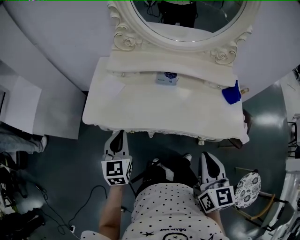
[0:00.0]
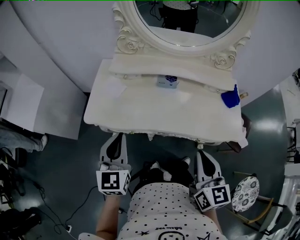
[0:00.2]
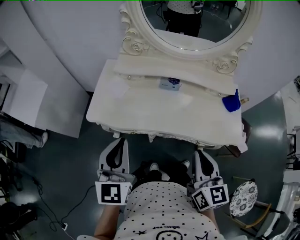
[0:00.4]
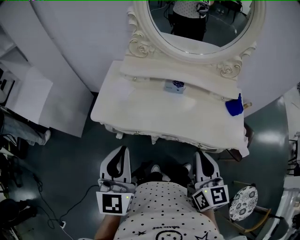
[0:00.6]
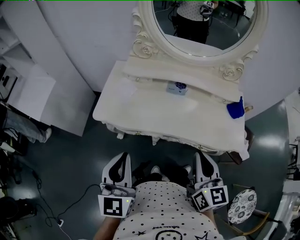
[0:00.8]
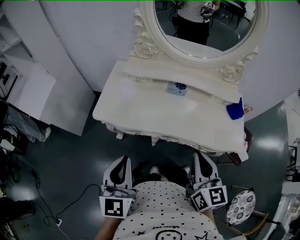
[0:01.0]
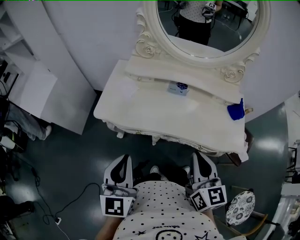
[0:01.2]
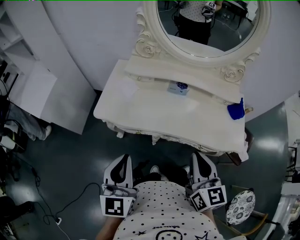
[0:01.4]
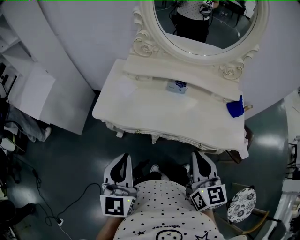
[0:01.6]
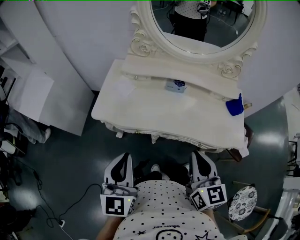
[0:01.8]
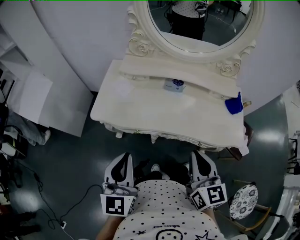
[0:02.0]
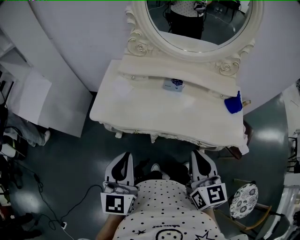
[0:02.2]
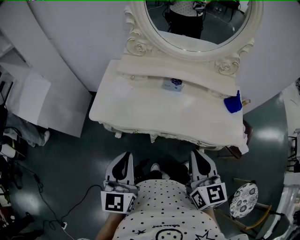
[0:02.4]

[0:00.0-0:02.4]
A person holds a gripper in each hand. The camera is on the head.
0:00.0 to 0:01.2: The right gripper shifts by roughly 5 cm. Meanwhile the left gripper heads upward and backward, covering about 15 cm.
0:01.2 to 0:02.4: The grippers stay close to where they were, moving slightly.

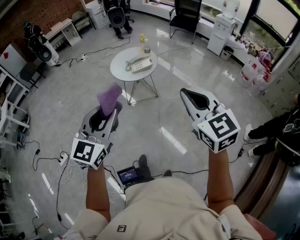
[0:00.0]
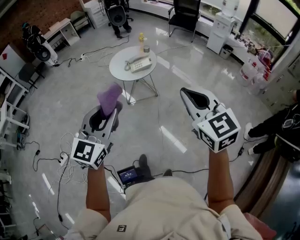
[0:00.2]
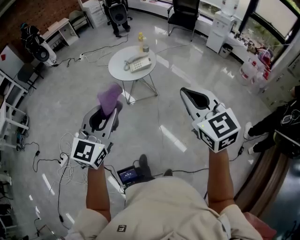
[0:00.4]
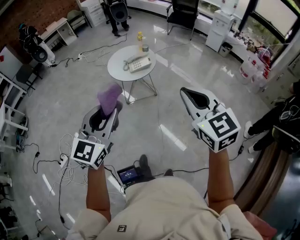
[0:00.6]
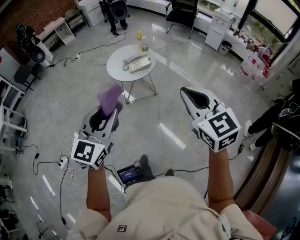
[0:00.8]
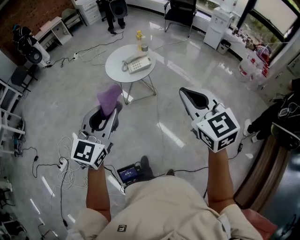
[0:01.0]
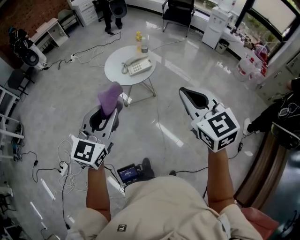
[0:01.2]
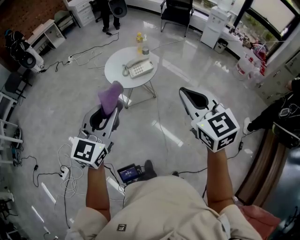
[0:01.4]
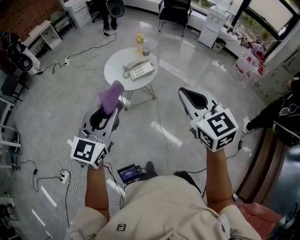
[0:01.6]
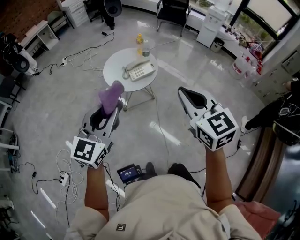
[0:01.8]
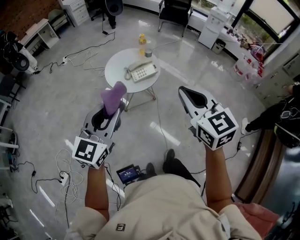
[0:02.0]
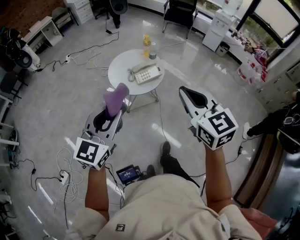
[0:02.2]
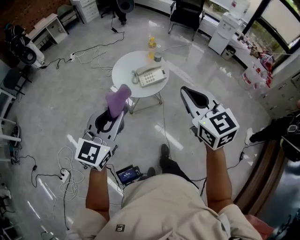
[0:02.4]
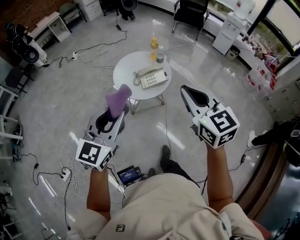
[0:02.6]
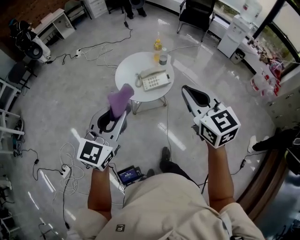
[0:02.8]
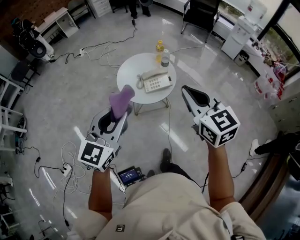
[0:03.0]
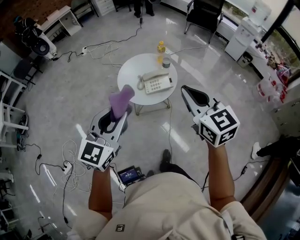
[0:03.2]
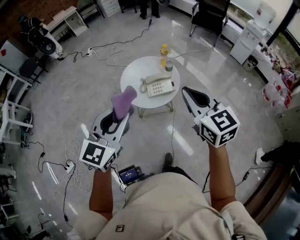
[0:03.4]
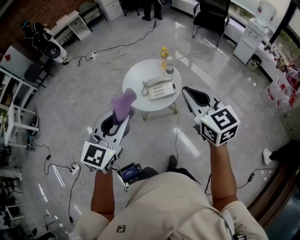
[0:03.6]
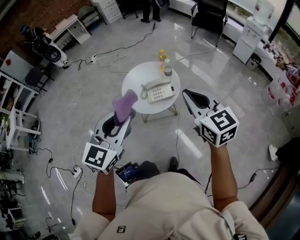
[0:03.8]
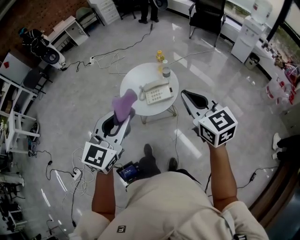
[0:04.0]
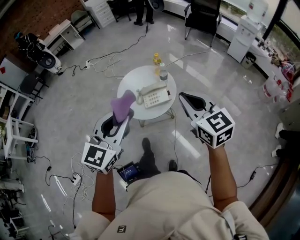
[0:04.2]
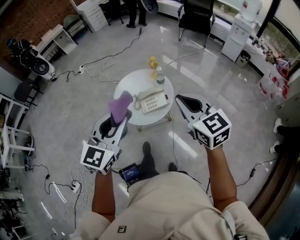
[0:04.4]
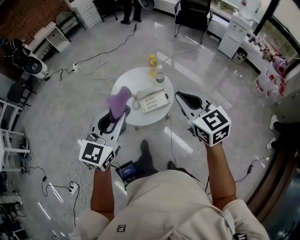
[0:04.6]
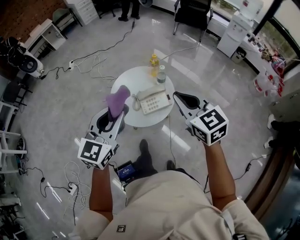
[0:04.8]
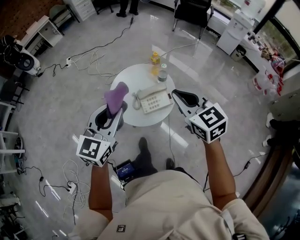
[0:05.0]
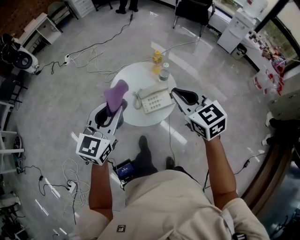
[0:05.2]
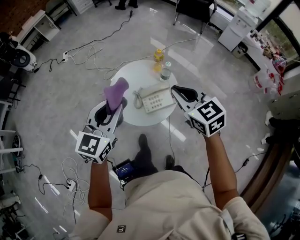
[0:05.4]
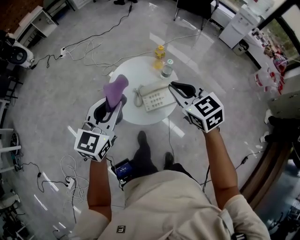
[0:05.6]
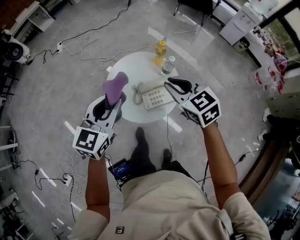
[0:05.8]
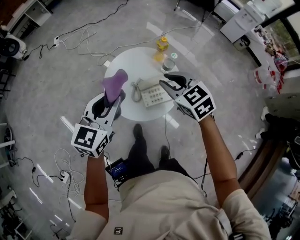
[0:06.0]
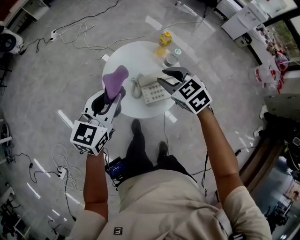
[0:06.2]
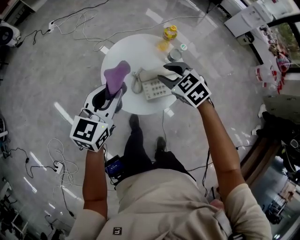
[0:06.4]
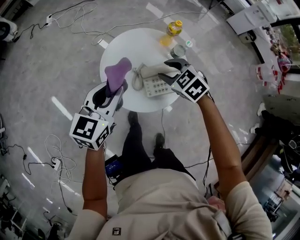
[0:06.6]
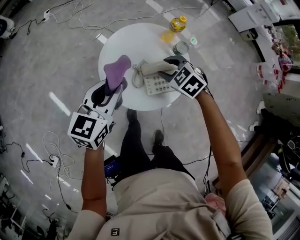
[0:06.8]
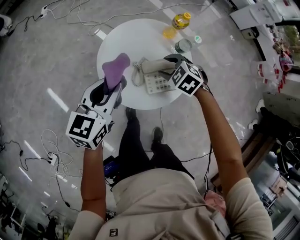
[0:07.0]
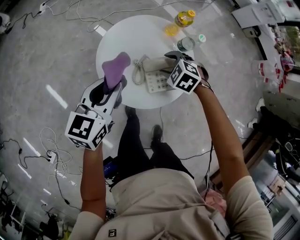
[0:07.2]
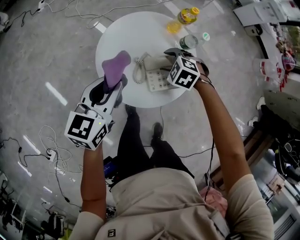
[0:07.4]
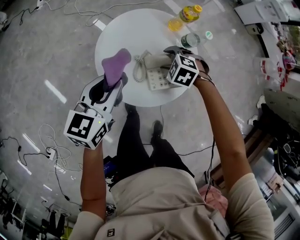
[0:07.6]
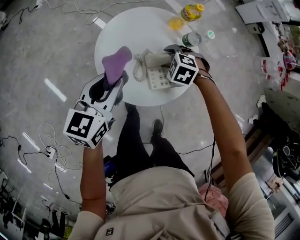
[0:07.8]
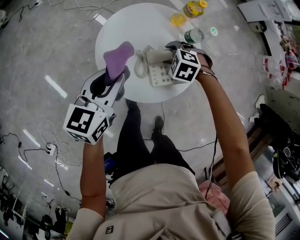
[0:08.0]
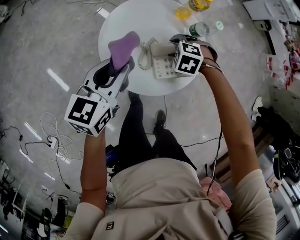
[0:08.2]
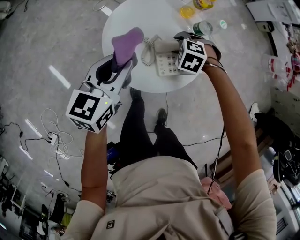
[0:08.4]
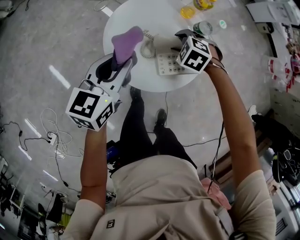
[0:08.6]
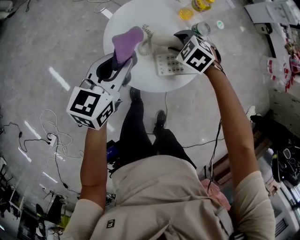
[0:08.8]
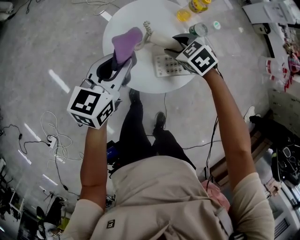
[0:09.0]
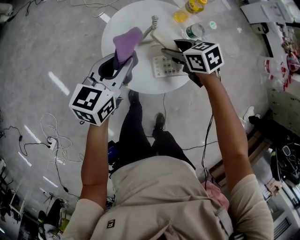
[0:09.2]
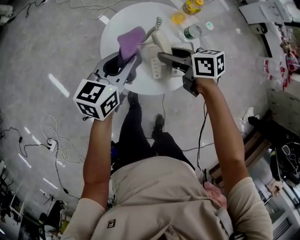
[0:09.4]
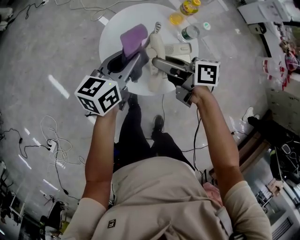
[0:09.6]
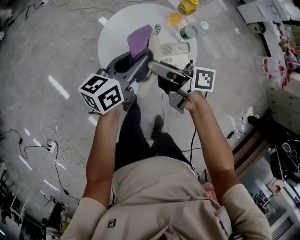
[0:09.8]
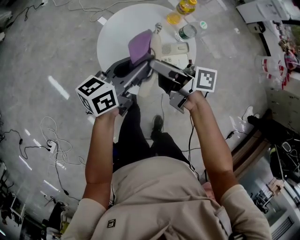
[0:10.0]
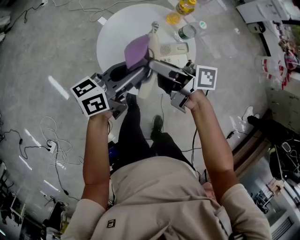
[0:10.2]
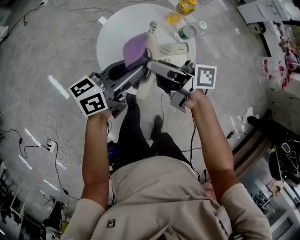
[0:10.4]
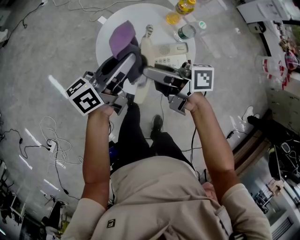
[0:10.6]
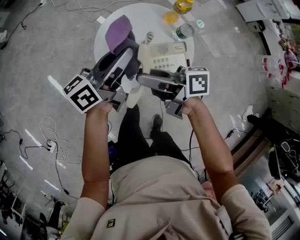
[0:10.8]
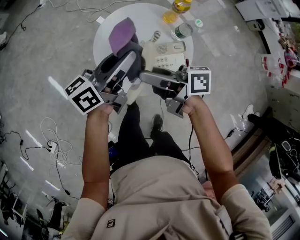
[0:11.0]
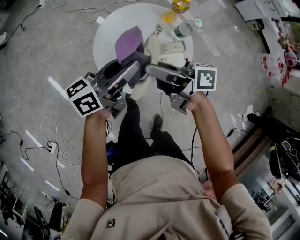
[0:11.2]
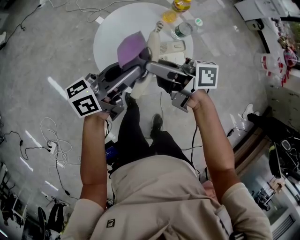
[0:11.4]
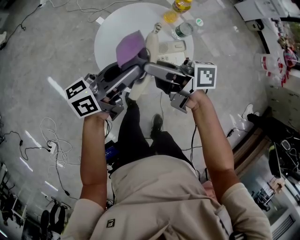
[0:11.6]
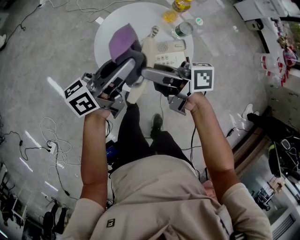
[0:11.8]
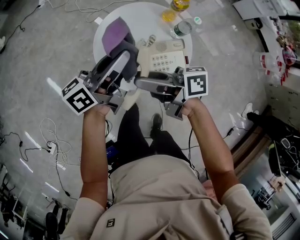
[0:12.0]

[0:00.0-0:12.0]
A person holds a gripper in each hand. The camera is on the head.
0:00.0 to 0:01.6: The two grippers go some 25 cm forward and to the left.
0:01.6 to 0:03.0: Both grippers travel together forward, about 20 cm.
0:03.0 to 0:04.4: Both grippers travel together forward and to the right, about 10 cm.
0:04.4 to 0:06.0: The two grippers go some 30 cm forward, downward and to the left. The right gripper changes its angle by about 20 degrees.
0:06.0 to 0:07.6: The right gripper goes approximately 30 cm downward, points its fingers some 40 degrees further downward, and opens up, while the left gripper travels downward by some 15 cm.
0:07.6 to 0:09.0: The right gripper travels upward by approximately 5 cm, and changes its angle by some 20 degrees.
0:09.0 to 0:10.4: The right gripper is displaced upward and to the left by some 15 cm, and angles its fingers upward, by about 60 degrees, while the left gripper moves to the right, some 5 cm, and rotates approximately 40 degrees.
0:10.4 to 0:12.0: The left gripper swings forward and backward, some 5 cm each way, with 2 reversals.

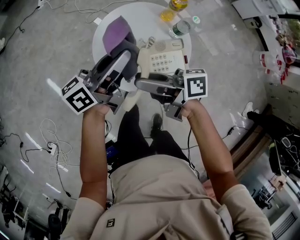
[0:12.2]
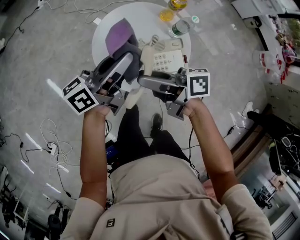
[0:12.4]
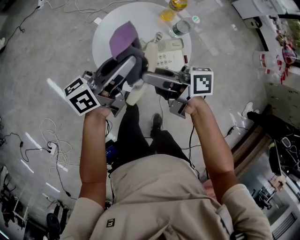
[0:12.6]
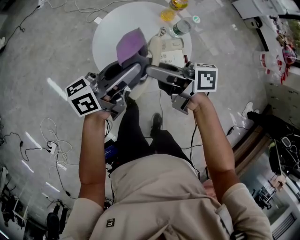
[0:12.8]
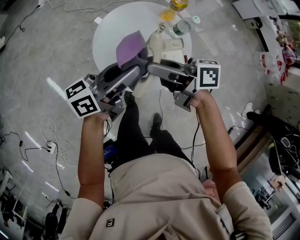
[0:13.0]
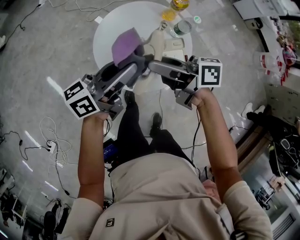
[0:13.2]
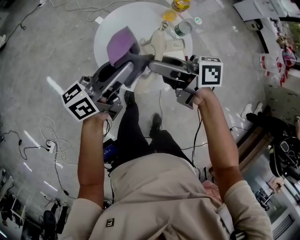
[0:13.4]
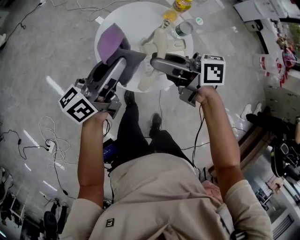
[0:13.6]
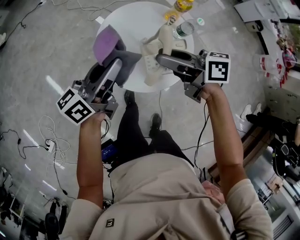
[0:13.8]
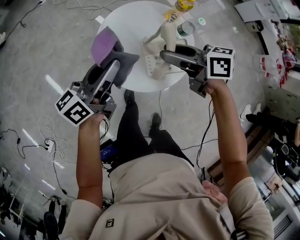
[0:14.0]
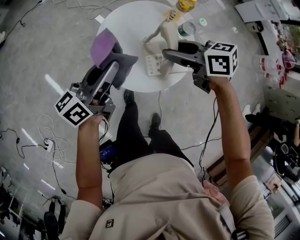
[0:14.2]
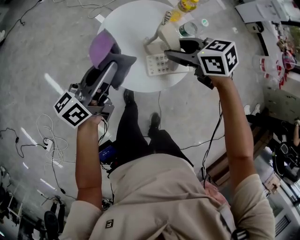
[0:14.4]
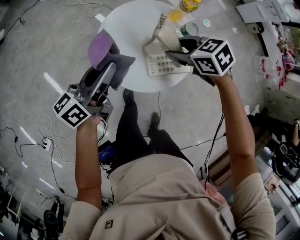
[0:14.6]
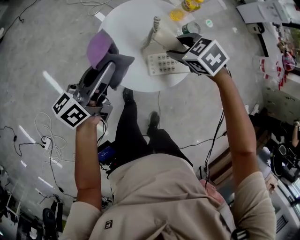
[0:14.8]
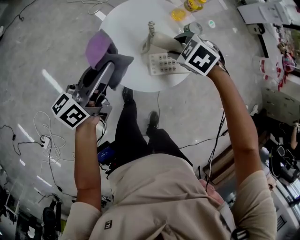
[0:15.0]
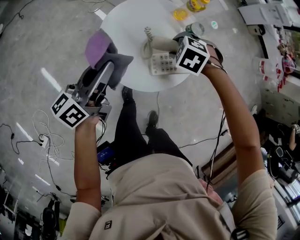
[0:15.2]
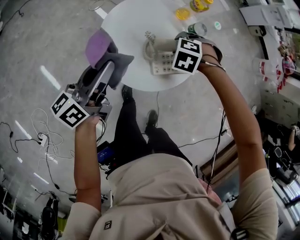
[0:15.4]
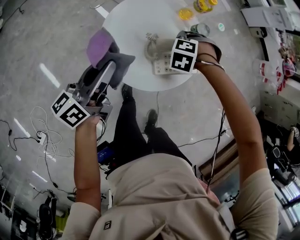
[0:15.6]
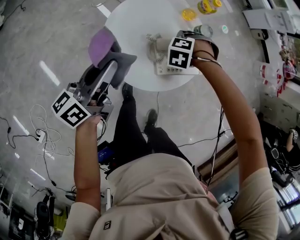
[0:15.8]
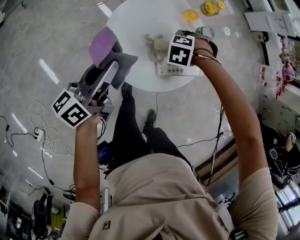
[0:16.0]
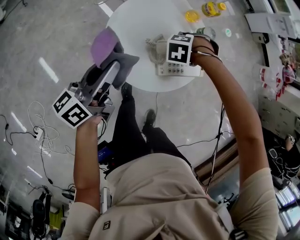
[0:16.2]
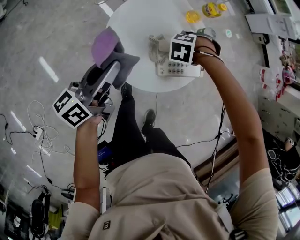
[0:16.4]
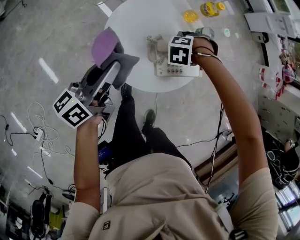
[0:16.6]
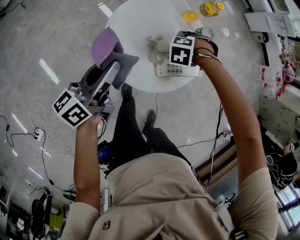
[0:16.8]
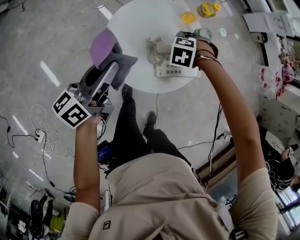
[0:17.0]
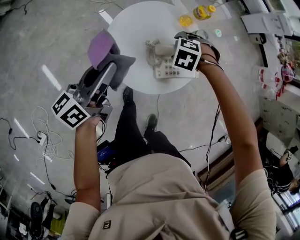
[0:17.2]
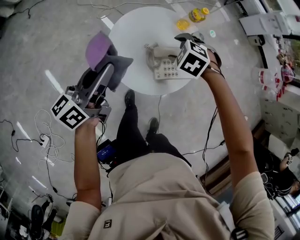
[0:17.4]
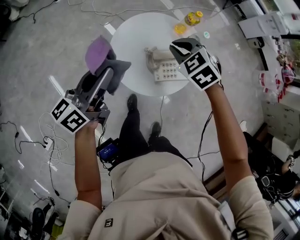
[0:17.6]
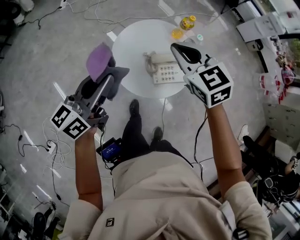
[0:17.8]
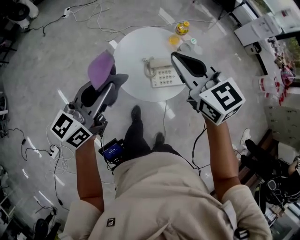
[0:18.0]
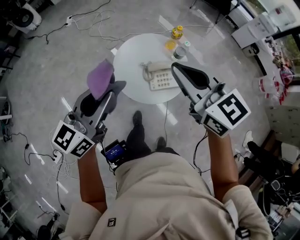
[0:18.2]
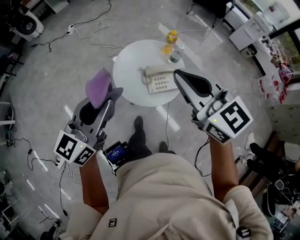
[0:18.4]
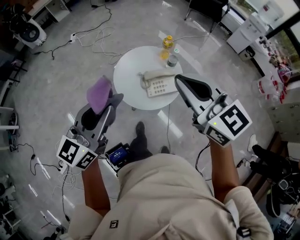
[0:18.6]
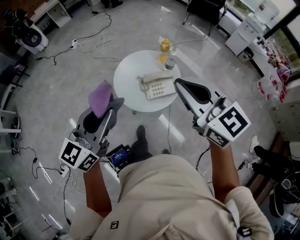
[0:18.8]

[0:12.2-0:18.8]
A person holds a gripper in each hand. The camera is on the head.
0:12.2 to 0:13.8: The left gripper changes place by some 5 cm, while the right gripper heads to the right, covering about 5 cm, and turns by roughly 20 degrees.
0:13.8 to 0:15.4: The right gripper is displaced downward by some 20 cm, and angles its fingers downward, by some 70 degrees, while the left gripper moves downward, some 5 cm.
0:15.4 to 0:17.2: The right gripper opens.
0:17.2 to 0:18.8: The left gripper heads upward, covering approximately 25 cm, and swivels some 40 degrees. Meanwhile the right gripper goes approximately 50 cm upward, tips its fingers upward by some 80 degrees, and closes.

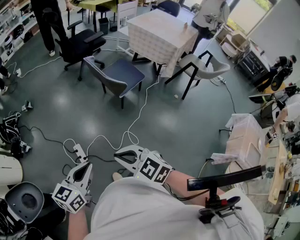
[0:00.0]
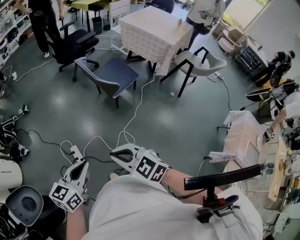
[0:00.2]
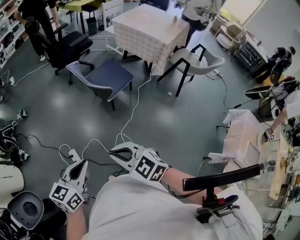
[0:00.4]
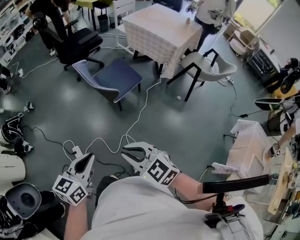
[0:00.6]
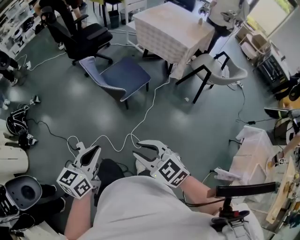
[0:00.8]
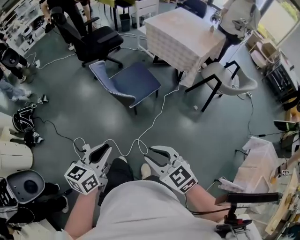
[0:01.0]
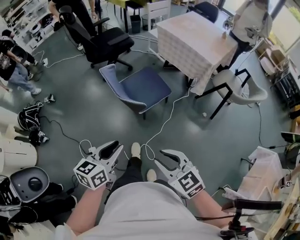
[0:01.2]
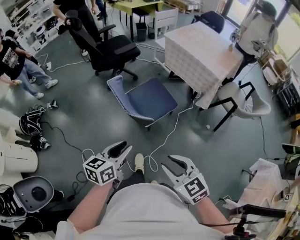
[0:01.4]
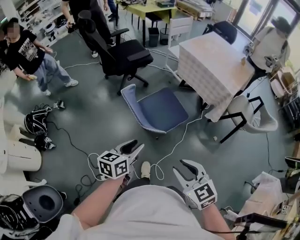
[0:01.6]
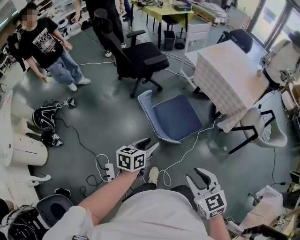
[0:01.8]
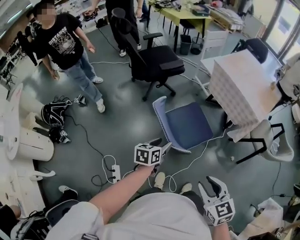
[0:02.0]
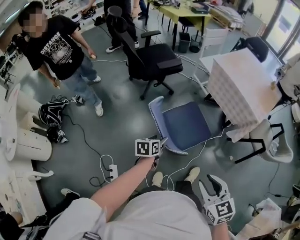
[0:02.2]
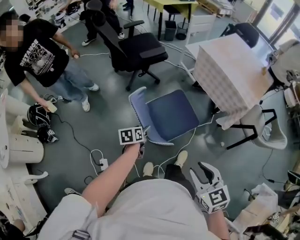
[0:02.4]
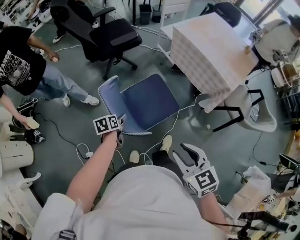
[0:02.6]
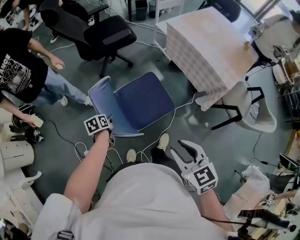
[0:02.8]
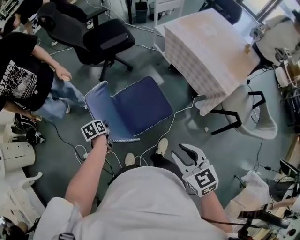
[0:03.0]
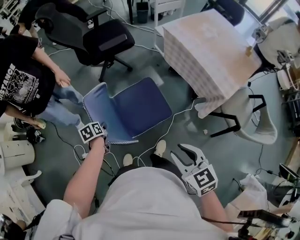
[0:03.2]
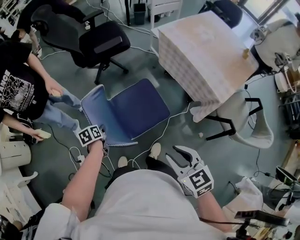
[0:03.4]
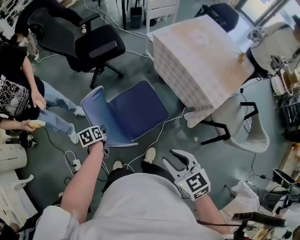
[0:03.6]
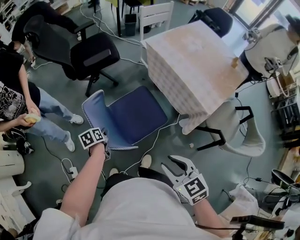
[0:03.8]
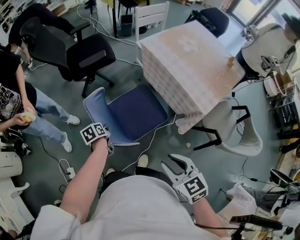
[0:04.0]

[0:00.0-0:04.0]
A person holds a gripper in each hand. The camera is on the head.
0:00.0 to 0:01.4: Both grippers travel together forward and to the right, roughly 35 cm. The right gripper opens, while the left gripper opens its fingers.
0:01.4 to 0:02.6: The right gripper heads forward, covering some 20 cm; the left gripper shifts roughly 35 cm forward and downward, swivels some 40 degrees, and opens.
0:02.6 to 0:04.0: The grippers both shift to the right by approximately 20 cm. The left gripper closes.
